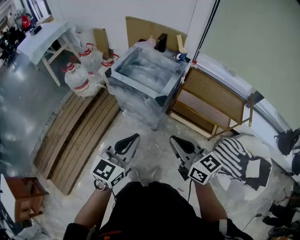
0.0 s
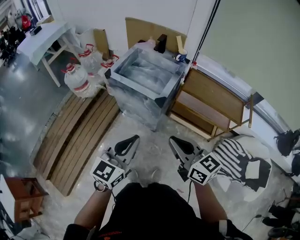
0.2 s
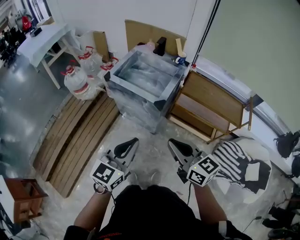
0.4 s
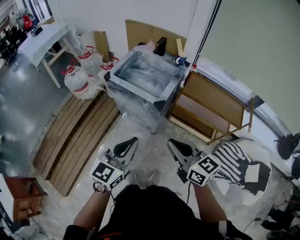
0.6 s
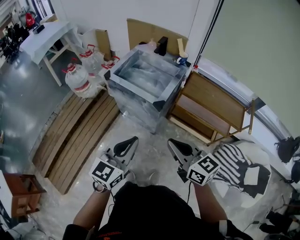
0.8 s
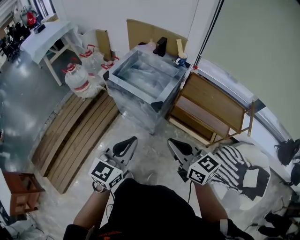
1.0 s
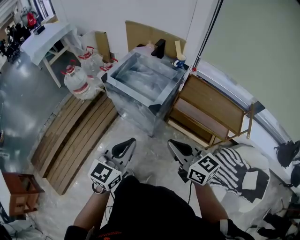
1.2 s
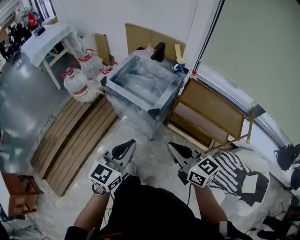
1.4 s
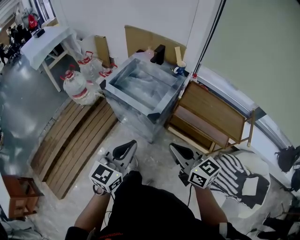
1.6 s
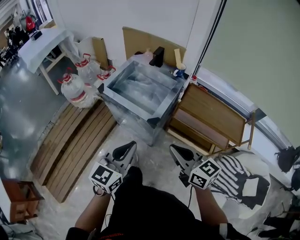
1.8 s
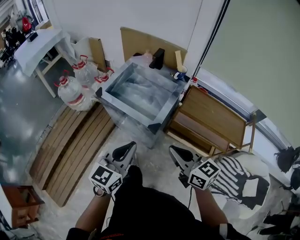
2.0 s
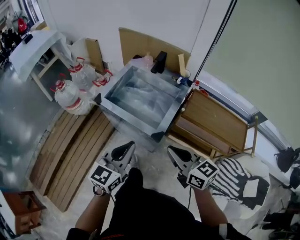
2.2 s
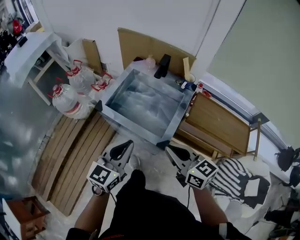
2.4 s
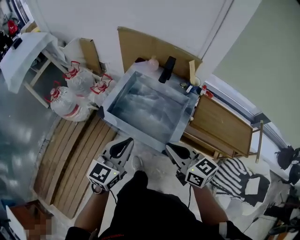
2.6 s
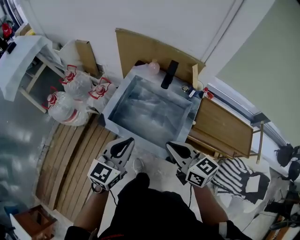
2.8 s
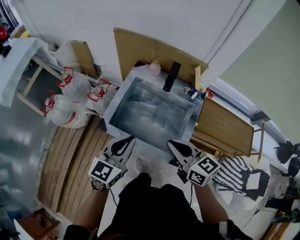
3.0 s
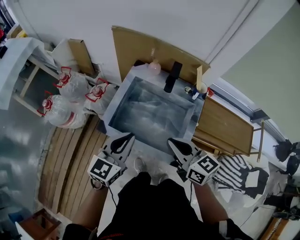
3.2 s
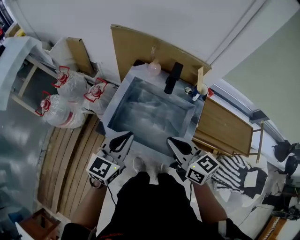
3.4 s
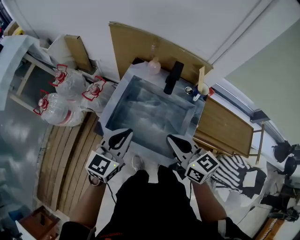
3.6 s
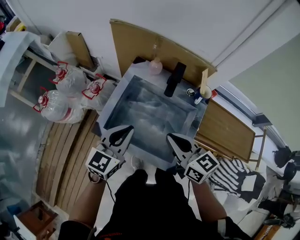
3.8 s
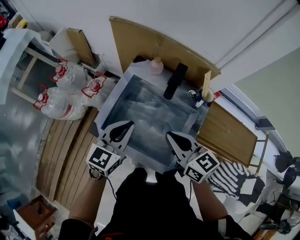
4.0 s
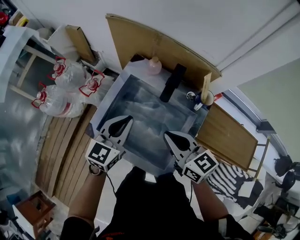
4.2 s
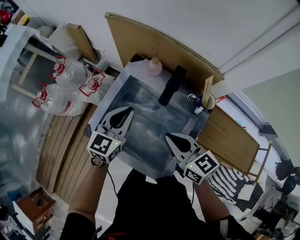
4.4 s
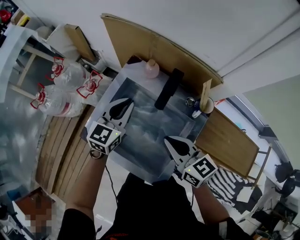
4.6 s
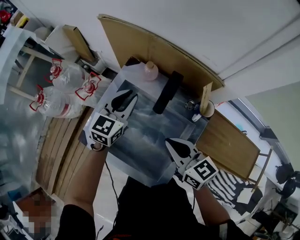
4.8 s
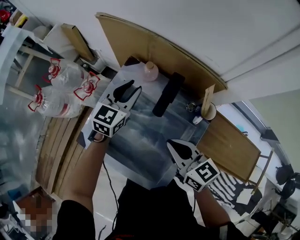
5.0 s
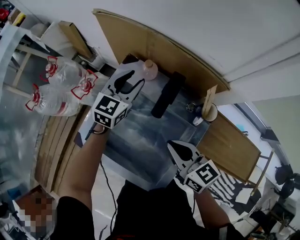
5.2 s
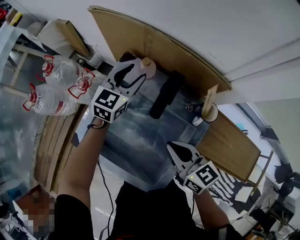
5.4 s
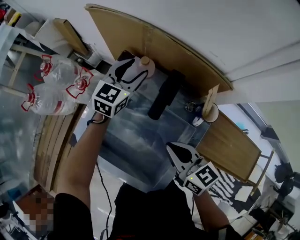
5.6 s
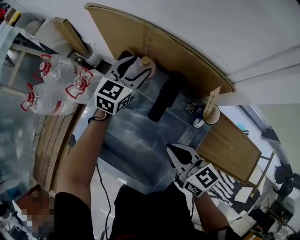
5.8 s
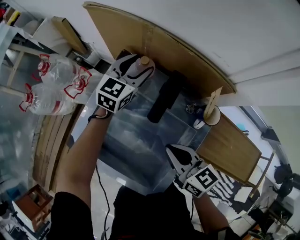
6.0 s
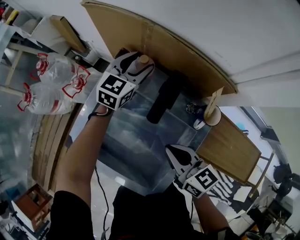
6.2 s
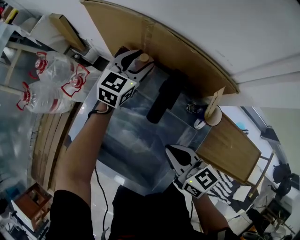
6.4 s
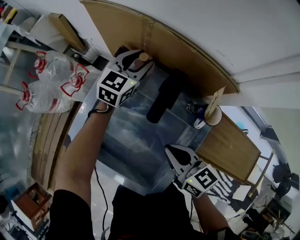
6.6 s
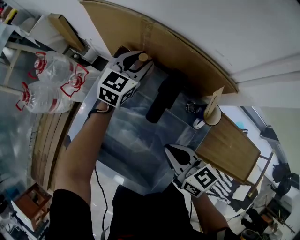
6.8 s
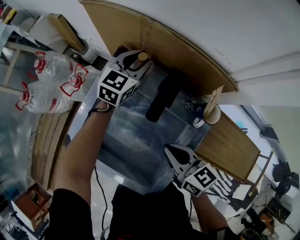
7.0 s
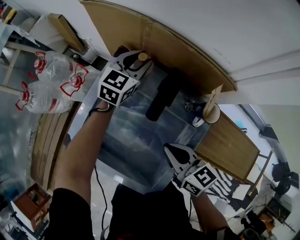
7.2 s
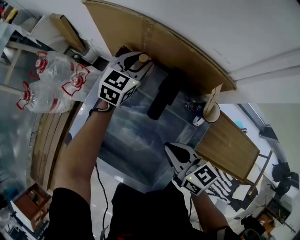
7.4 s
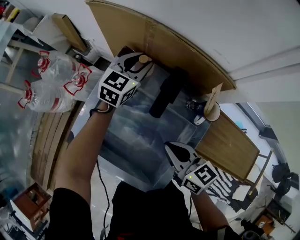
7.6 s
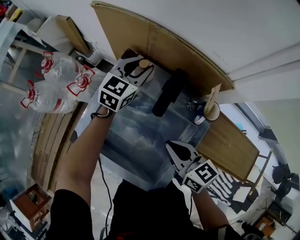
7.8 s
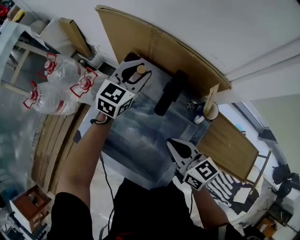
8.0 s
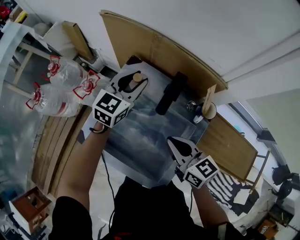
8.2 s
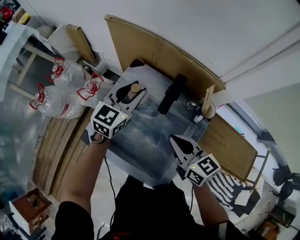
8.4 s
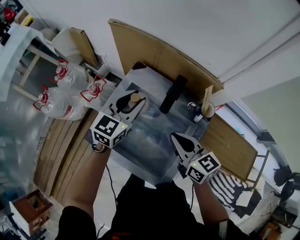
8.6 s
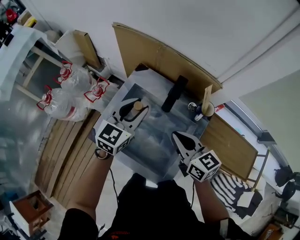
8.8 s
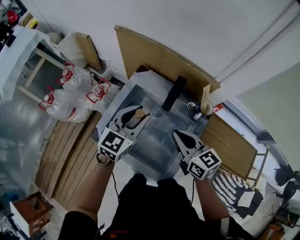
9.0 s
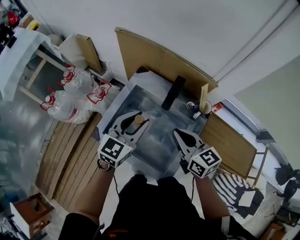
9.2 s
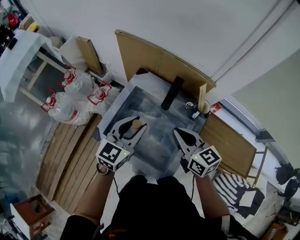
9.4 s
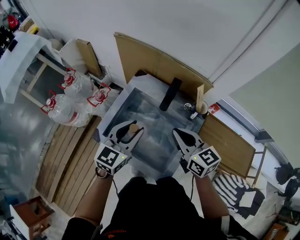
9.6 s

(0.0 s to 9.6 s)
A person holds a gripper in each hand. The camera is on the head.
0.0 s - 1.6 s: Both grippers travel together forward and to the right, roughly 10 cm.
1.6 s - 3.2 s: Both grippers move forward, some 40 cm.
3.2 s - 4.8 s: The right gripper is displaced forward, to the right and downward by roughly 20 cm, while the left gripper heads forward, covering roughly 25 cm.
4.8 s - 6.4 s: The right gripper travels downward by some 5 cm; the left gripper heads forward, to the right and downward, covering some 15 cm, and opens its fingers.
6.4 s - 8.0 s: The left gripper heads backward and upward, covering some 5 cm, and closes up.
8.0 s - 9.6 s: The right gripper moves upward, some 10 cm. Meanwhile the left gripper moves backward, roughly 25 cm.

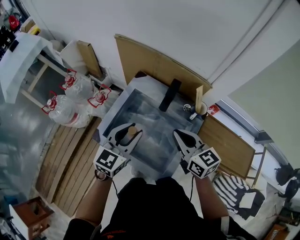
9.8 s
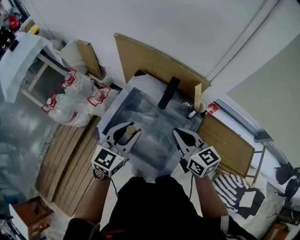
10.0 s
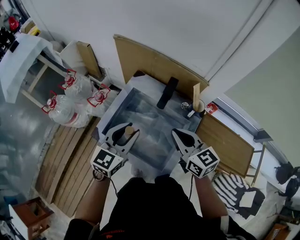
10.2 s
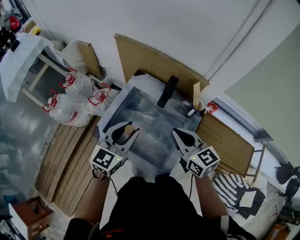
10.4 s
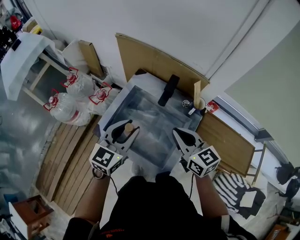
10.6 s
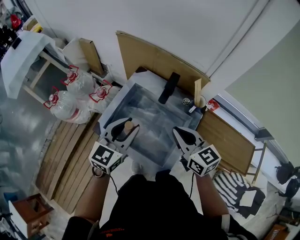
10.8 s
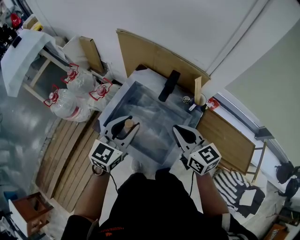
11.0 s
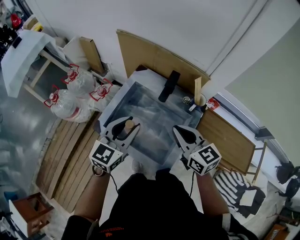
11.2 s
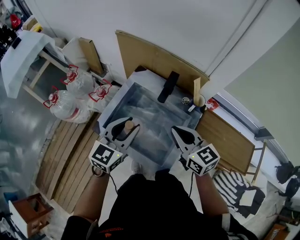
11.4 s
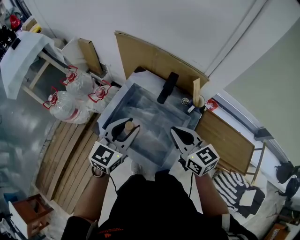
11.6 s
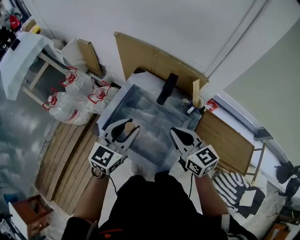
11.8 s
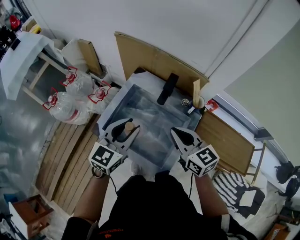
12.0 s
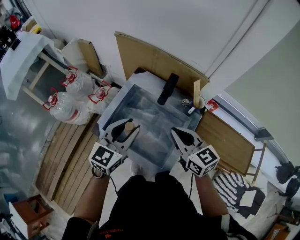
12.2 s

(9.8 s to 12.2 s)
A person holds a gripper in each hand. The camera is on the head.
9.8 s - 11.0 s: There are only small adjustments of the grippers.
11.0 s - 12.2 s: The two grippers keep their place.

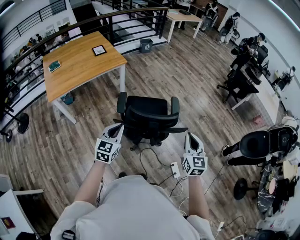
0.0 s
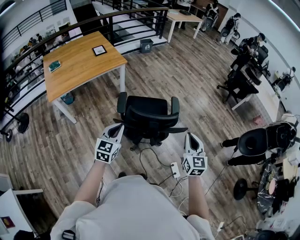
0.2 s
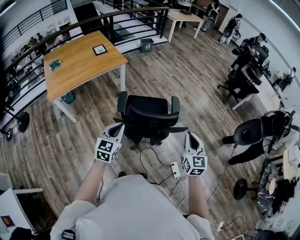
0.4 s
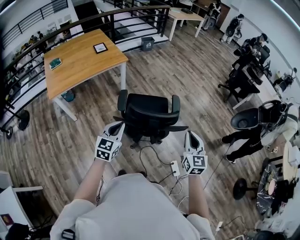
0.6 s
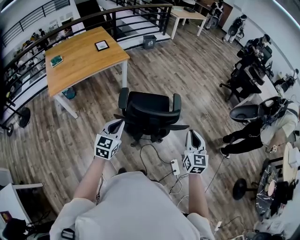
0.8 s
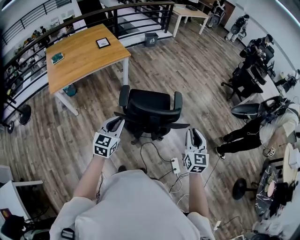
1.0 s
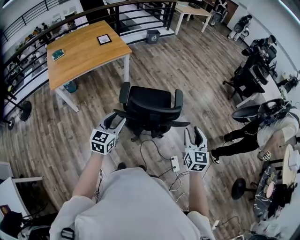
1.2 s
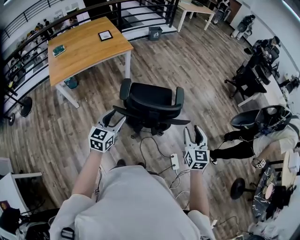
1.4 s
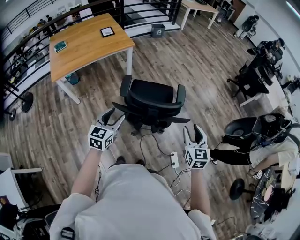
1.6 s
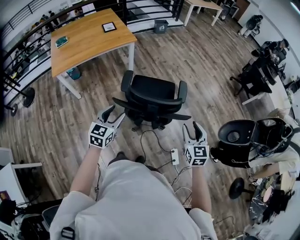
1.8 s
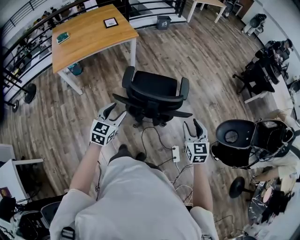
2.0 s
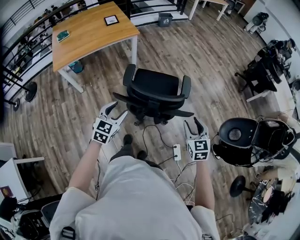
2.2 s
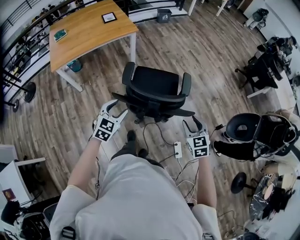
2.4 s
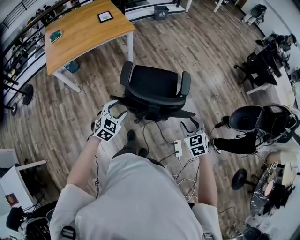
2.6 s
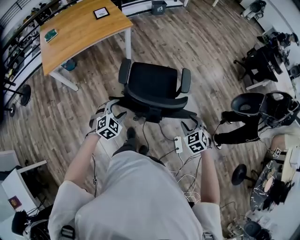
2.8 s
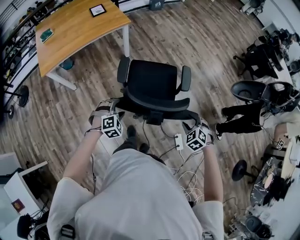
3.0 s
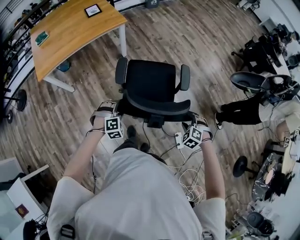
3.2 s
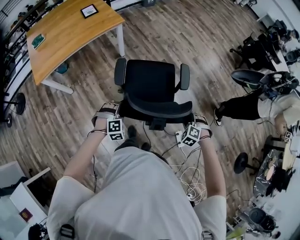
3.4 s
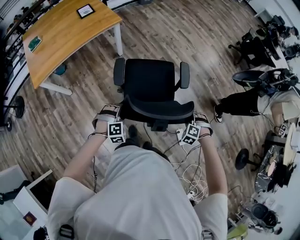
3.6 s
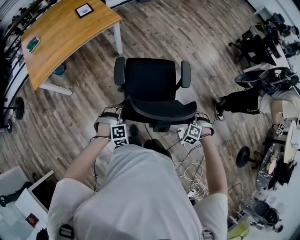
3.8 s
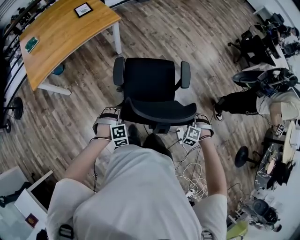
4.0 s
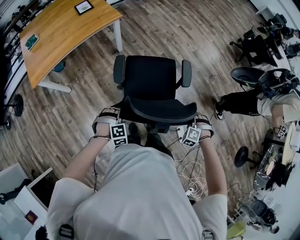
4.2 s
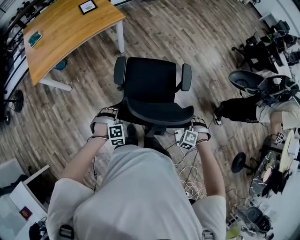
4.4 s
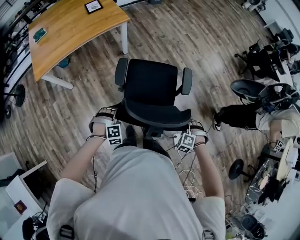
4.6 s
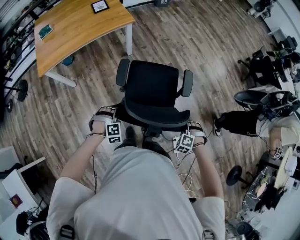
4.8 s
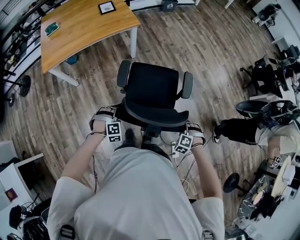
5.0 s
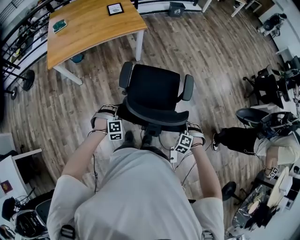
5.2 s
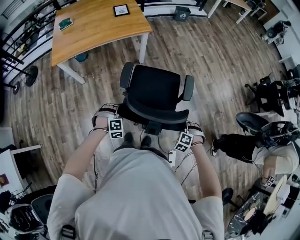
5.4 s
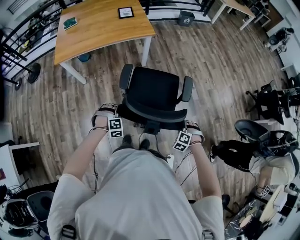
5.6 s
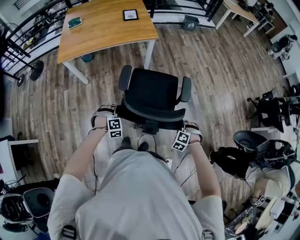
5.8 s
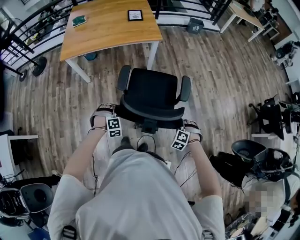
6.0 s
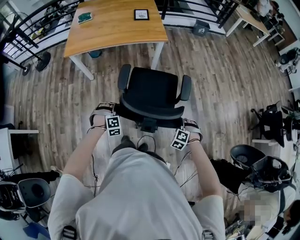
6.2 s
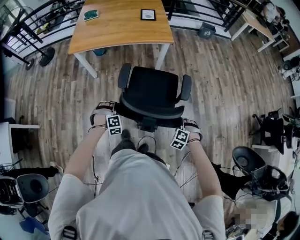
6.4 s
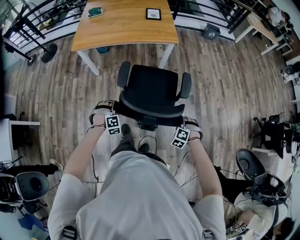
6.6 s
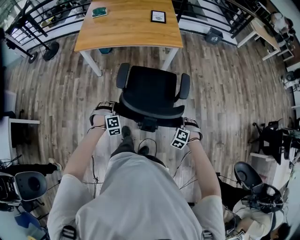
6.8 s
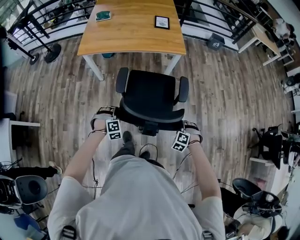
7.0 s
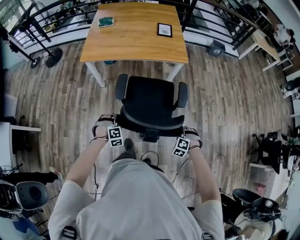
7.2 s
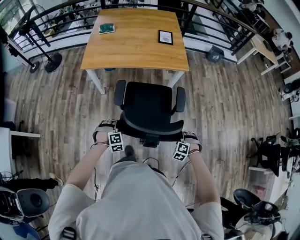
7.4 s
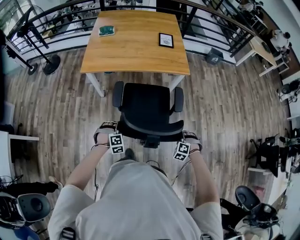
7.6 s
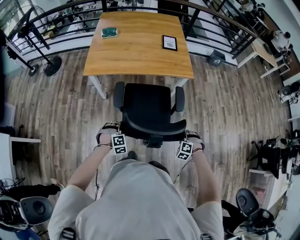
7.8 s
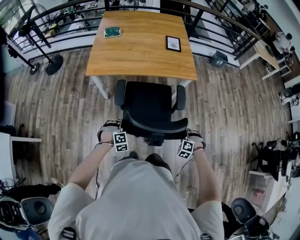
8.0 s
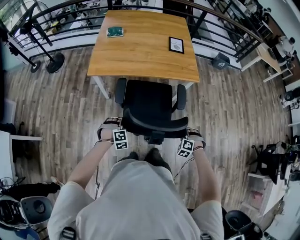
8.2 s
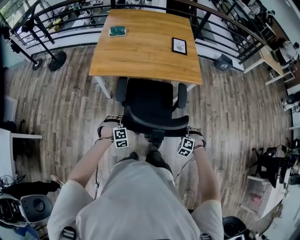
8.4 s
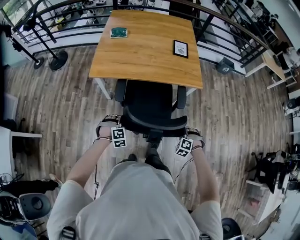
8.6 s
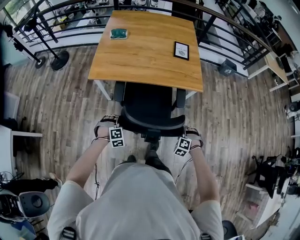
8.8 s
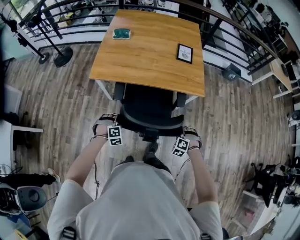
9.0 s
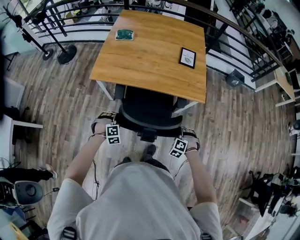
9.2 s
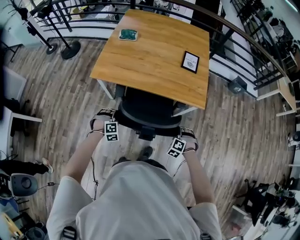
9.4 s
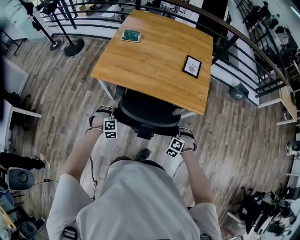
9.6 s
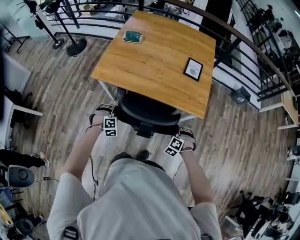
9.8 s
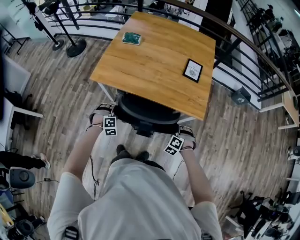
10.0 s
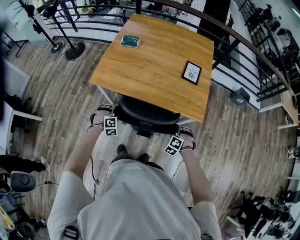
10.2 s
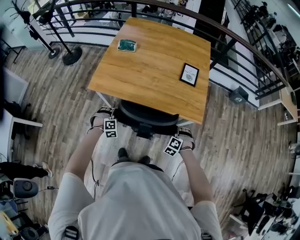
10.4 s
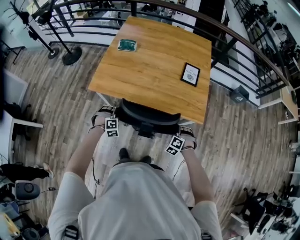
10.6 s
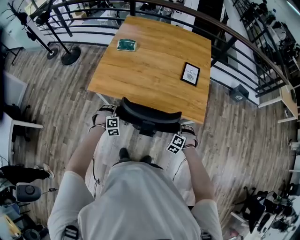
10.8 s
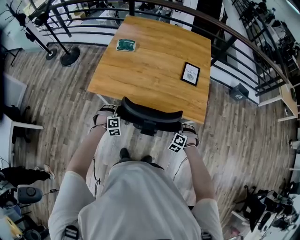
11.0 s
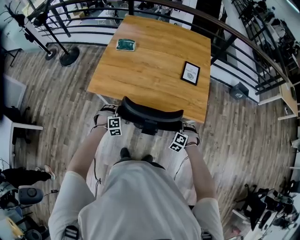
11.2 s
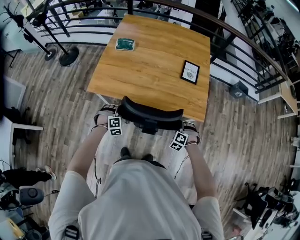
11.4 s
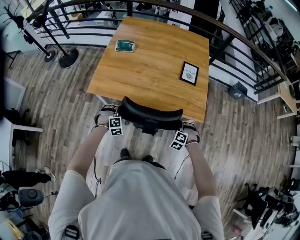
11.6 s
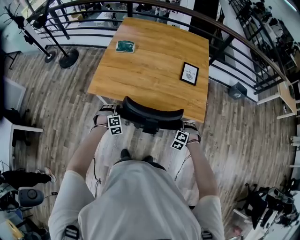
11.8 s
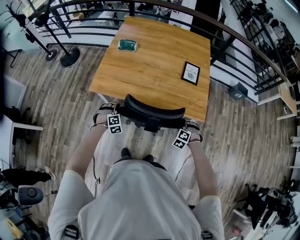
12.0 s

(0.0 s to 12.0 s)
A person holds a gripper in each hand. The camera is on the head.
0.0 s - 1.6 s: The right gripper changes place by some 5 cm, and opens up. The left gripper opens up.
1.6 s - 3.0 s: The two grippers go some 20 cm downward and forward. The right gripper tips its fingers downward by approximately 40 degrees, while the left gripper rolls clockwise, seen from behind, by about 60 degrees.
3.0 s - 4.4 s: The right gripper travels downward and forward by approximately 10 cm, swivels about 30 degrees, and closes. Meanwhile the left gripper is displaced downward by approximately 5 cm, and closes.
4.4 s - 6.0 s: The right gripper ends up approximately 15 cm from where it was, and rotates about 20 degrees. Meanwhile the left gripper shifts by roughly 5 cm, and rotates about 30 degrees.
6.0 s - 7.6 s: The left gripper goes about 20 cm to the left and forward; the right gripper is displaced forward and to the left by about 30 cm.
7.6 s - 9.0 s: The grippers both shift forward by about 20 cm.
9.0 s - 10.4 s: The grippers both shift forward by approximately 20 cm.
10.4 s - 12.0 s: The left gripper opens. Meanwhile the right gripper opens up.
